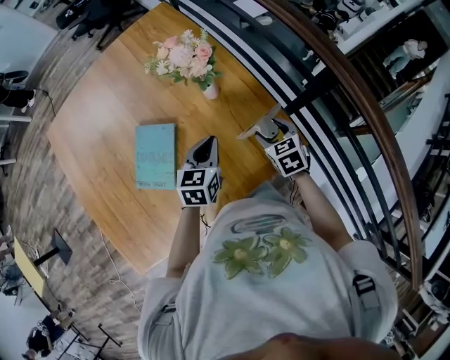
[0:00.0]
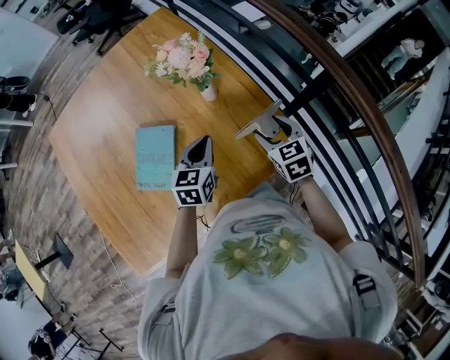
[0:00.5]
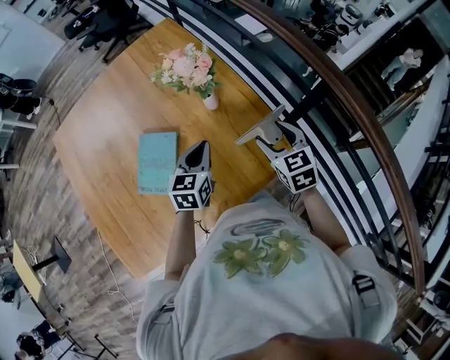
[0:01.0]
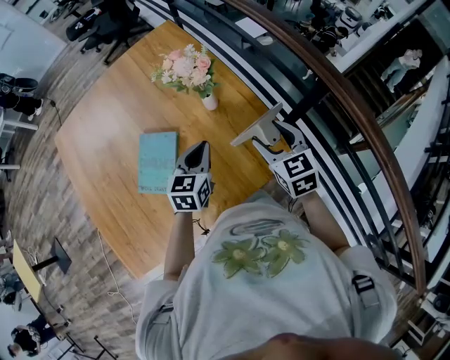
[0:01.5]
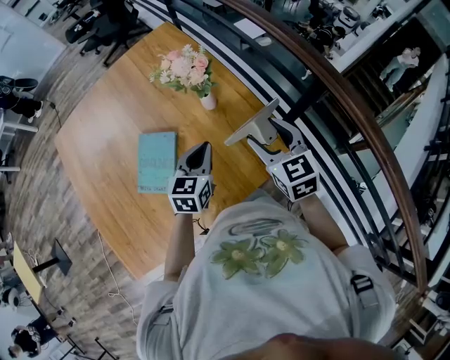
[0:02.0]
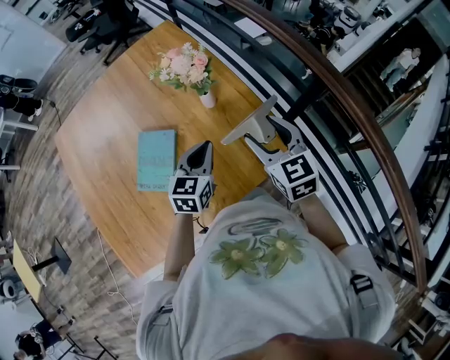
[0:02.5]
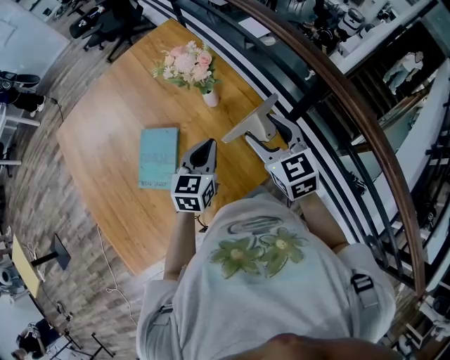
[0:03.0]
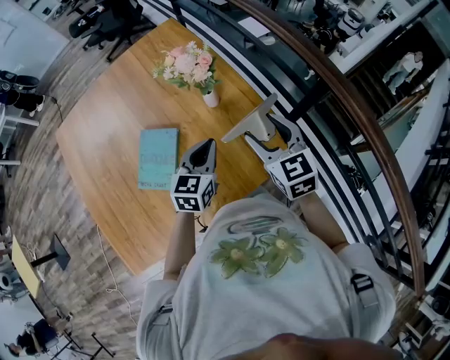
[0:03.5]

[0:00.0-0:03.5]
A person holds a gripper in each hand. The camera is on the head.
0:00.0 to 0:02.0: The left gripper moves upward, about 5 cm; the right gripper is displaced upward by approximately 20 cm, and swivels some 20 degrees.
0:02.0 to 0:03.5: The grippers move only a little.

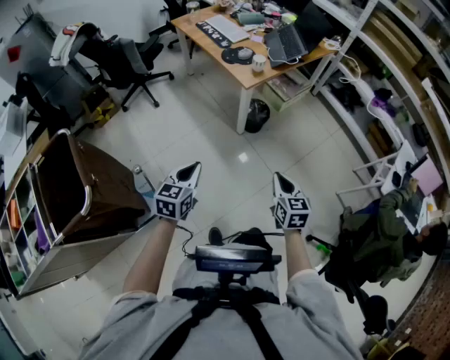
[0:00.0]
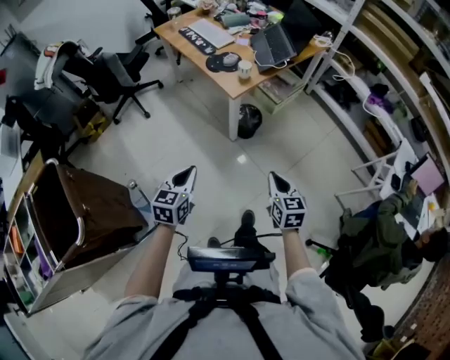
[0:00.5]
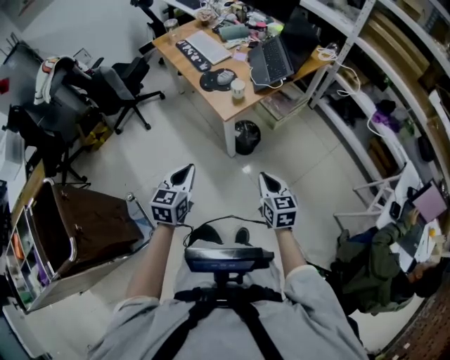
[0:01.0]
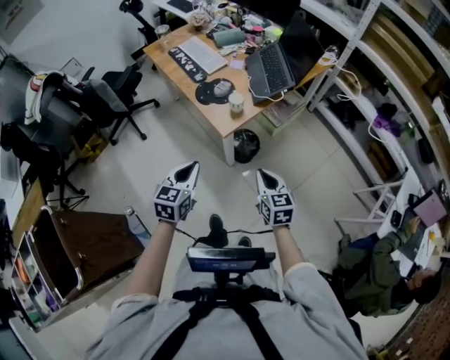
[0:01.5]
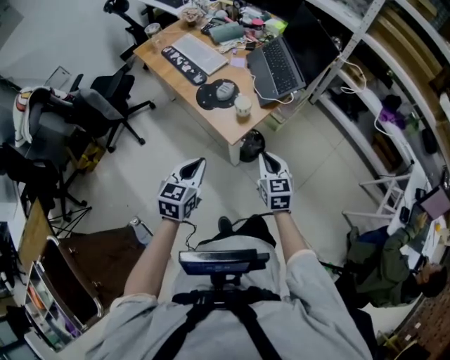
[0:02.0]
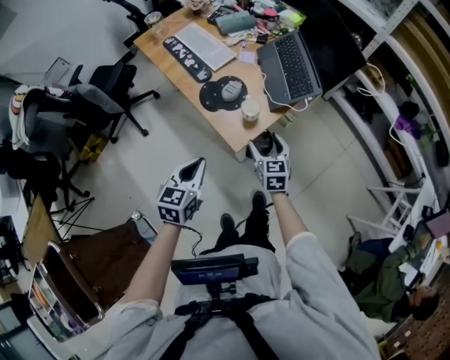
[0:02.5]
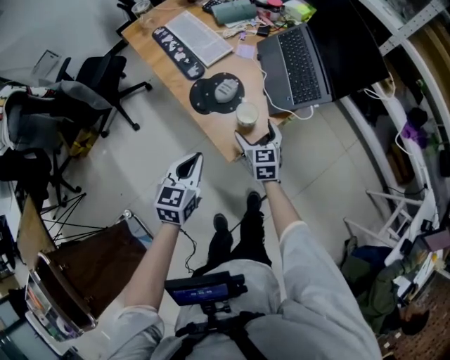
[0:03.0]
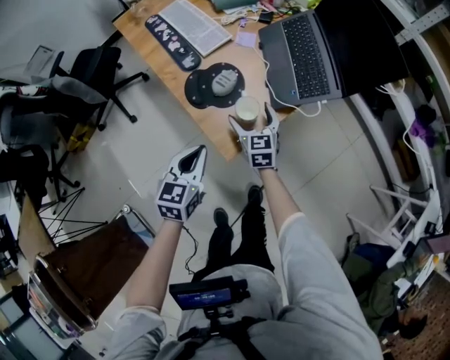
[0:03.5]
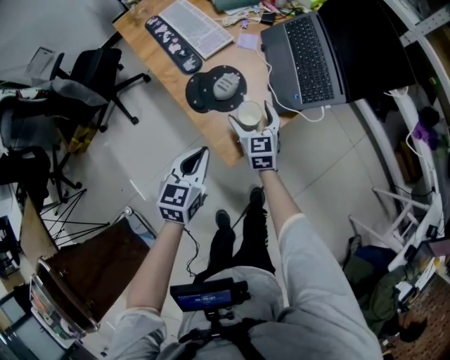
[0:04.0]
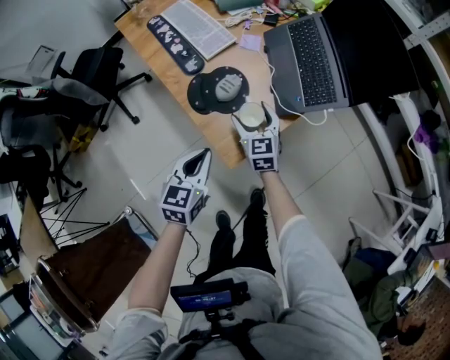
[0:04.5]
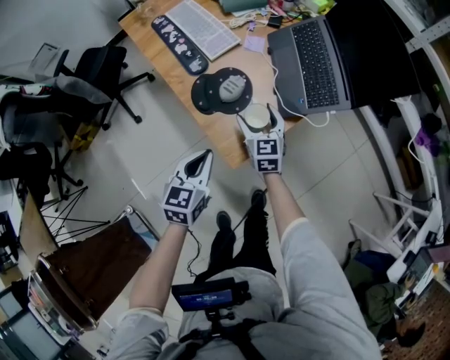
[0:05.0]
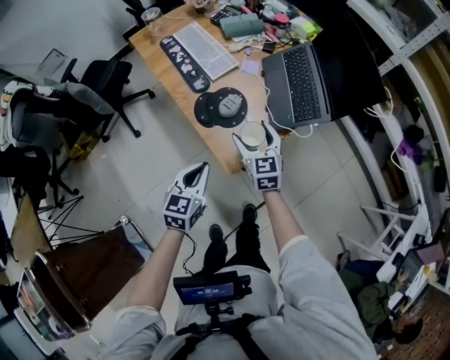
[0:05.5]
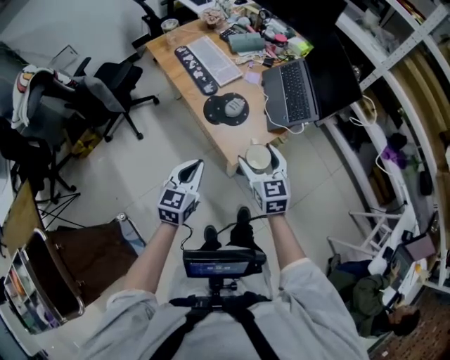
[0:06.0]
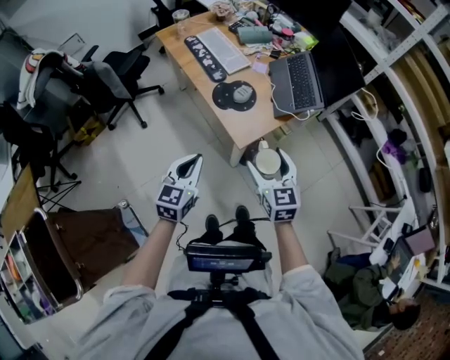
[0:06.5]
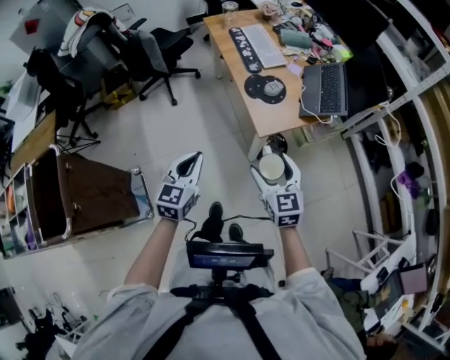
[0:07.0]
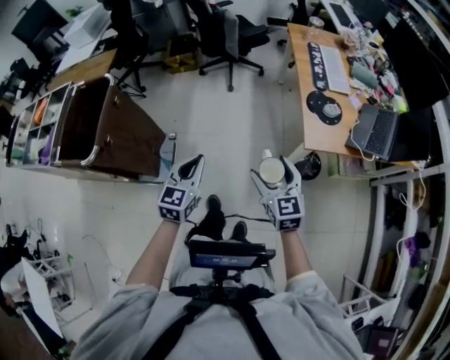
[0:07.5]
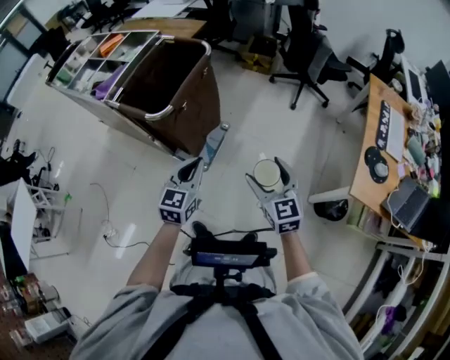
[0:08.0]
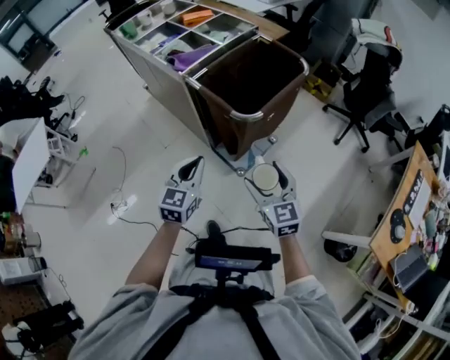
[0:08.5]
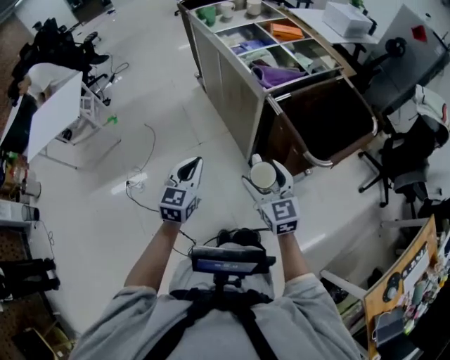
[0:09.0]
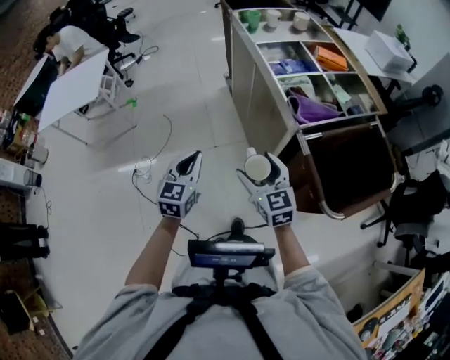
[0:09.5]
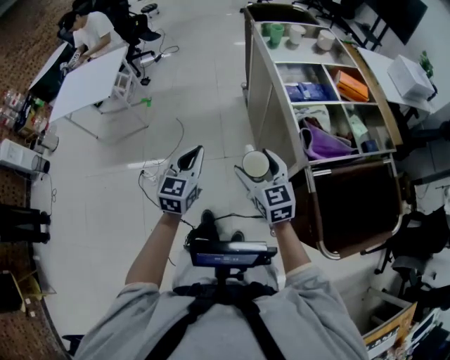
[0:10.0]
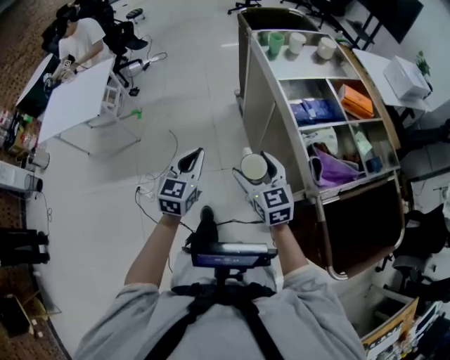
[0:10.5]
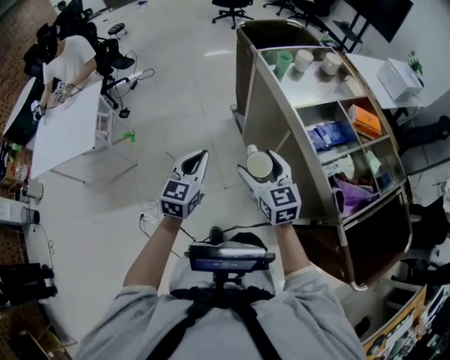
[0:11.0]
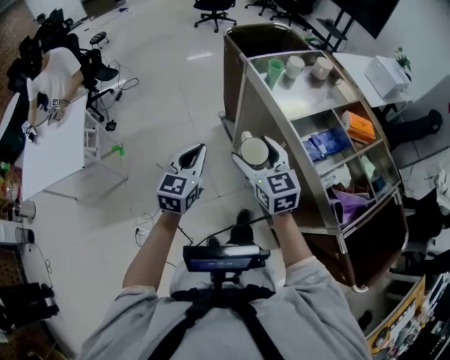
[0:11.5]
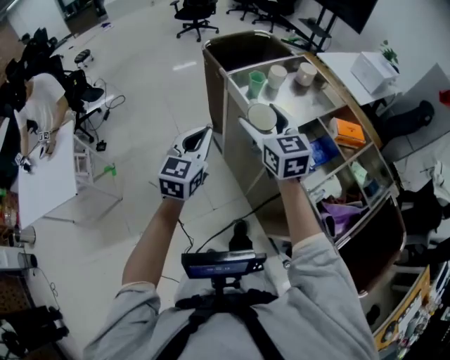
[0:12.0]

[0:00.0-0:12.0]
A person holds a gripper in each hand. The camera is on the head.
0:00.0 to 0:02.0: The pair of grippers is taken forward, about 40 cm.
0:02.0 to 0:04.0: The grippers both shift forward and downward by approximately 25 cm. The right gripper opens its fingers.
0:04.0 to 0:06.0: The left gripper shifts some 15 cm upward and backward; the right gripper moves upward and backward, roughly 25 cm.
0:06.0 to 0:08.0: The two grippers travel together, roughly 50 cm. The right gripper rotates about 70 degrees; the left gripper rotates some 70 degrees.
0:08.0 to 0:10.0: The two grippers travel together, about 70 cm. The left gripper rotates about 60 degrees; the right gripper turns by about 60 degrees.
0:10.0 to 0:12.0: The pair of grippers is taken forward, roughly 40 cm. The left gripper turns by roughly 20 degrees, while the right gripper swivels about 20 degrees.

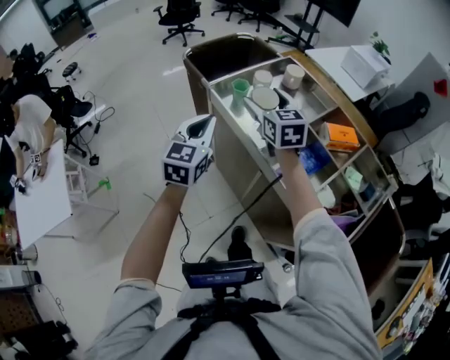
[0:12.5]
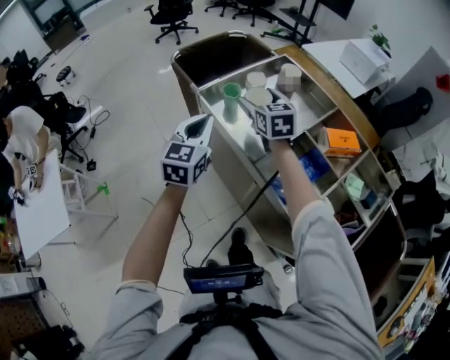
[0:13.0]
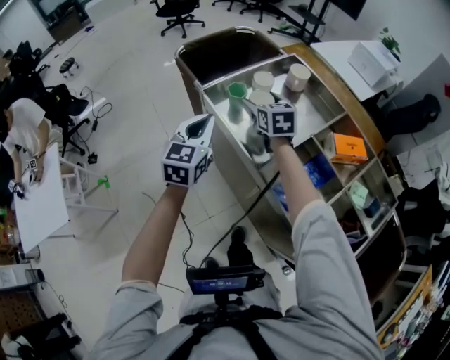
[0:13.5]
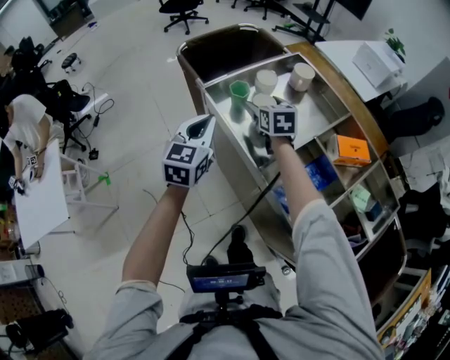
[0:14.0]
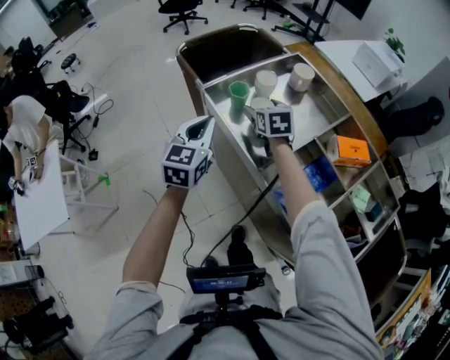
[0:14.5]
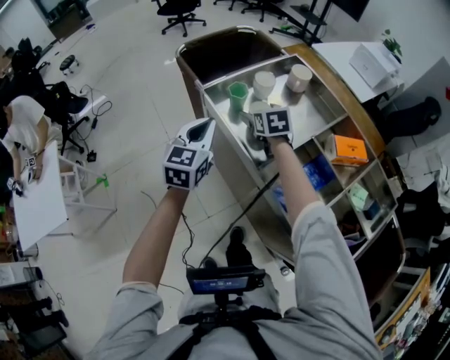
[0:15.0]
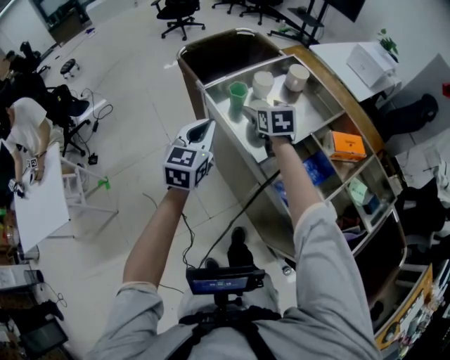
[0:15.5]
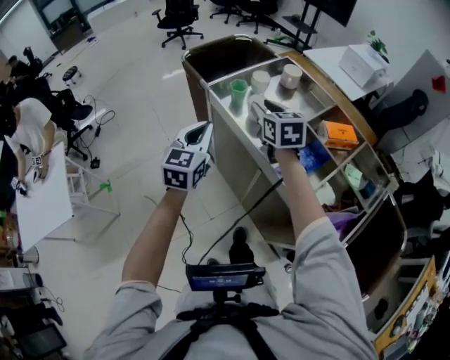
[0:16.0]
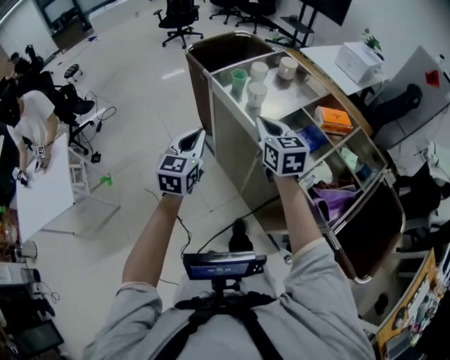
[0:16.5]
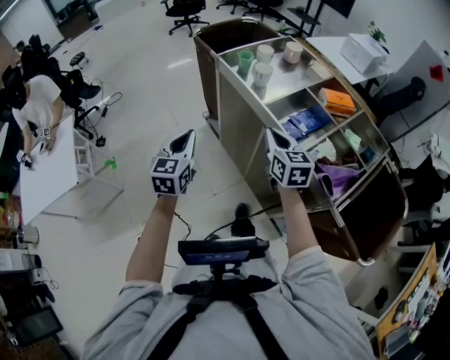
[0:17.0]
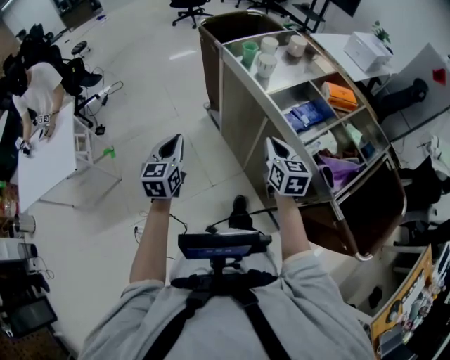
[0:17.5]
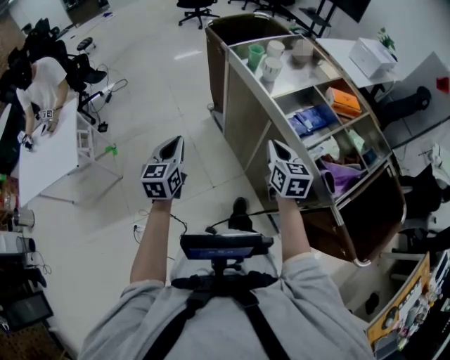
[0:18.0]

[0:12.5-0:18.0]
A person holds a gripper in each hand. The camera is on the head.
0:12.5 to 0:14.5: The left gripper travels forward by about 10 cm; the right gripper is displaced downward and forward by approximately 20 cm, and changes its angle by some 20 degrees.
0:14.5 to 0:16.0: The left gripper shifts some 10 cm backward. Meanwhile the right gripper moves backward and upward, some 15 cm, and closes.
0:16.0 to 0:18.0: The left gripper shifts some 25 cm backward, to the left and downward. Meanwhile the right gripper goes approximately 25 cm backward.

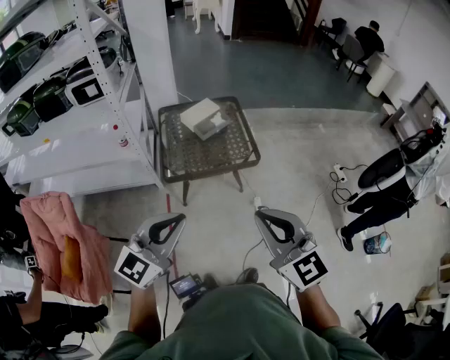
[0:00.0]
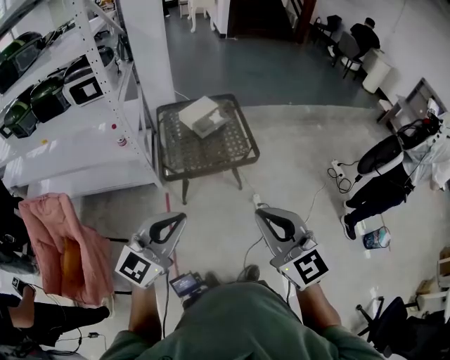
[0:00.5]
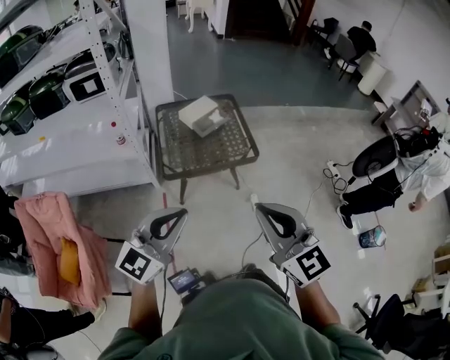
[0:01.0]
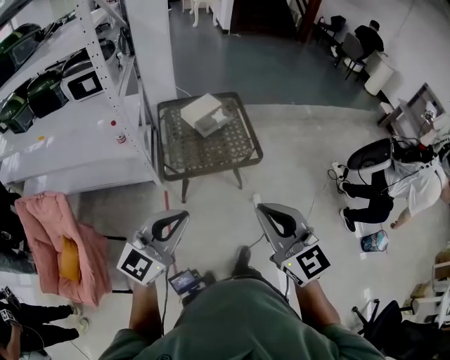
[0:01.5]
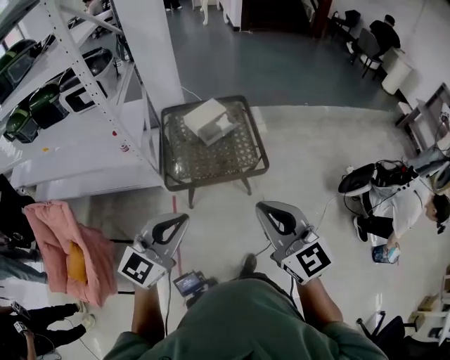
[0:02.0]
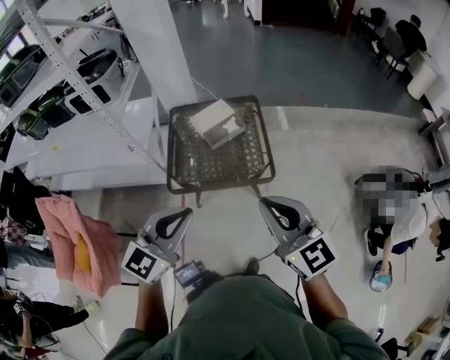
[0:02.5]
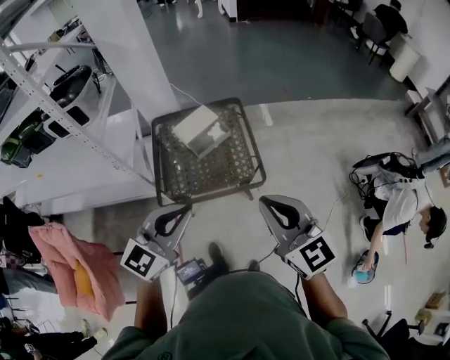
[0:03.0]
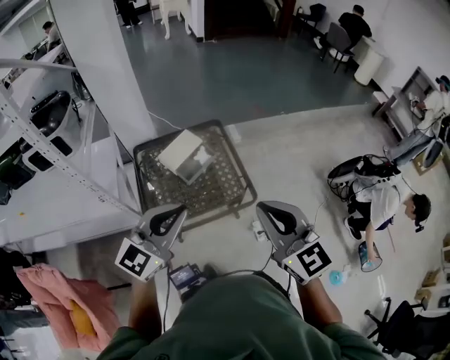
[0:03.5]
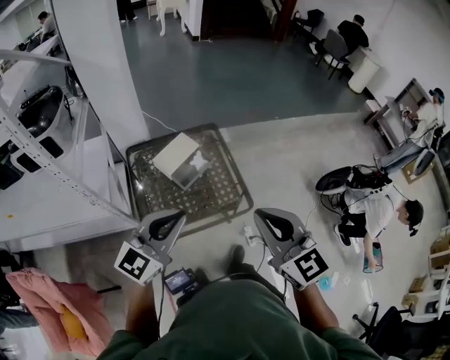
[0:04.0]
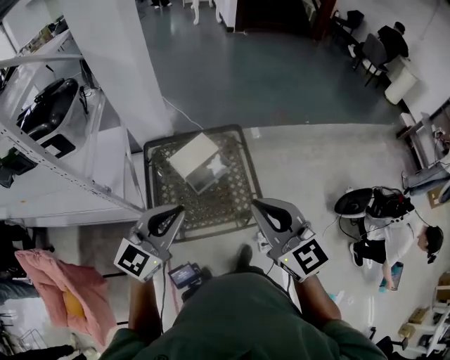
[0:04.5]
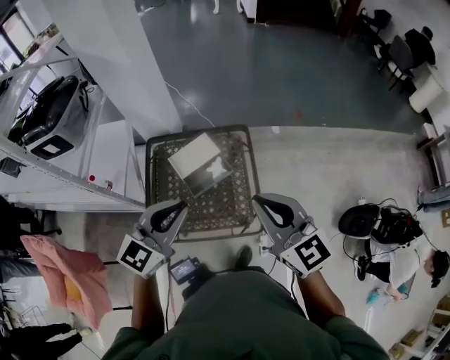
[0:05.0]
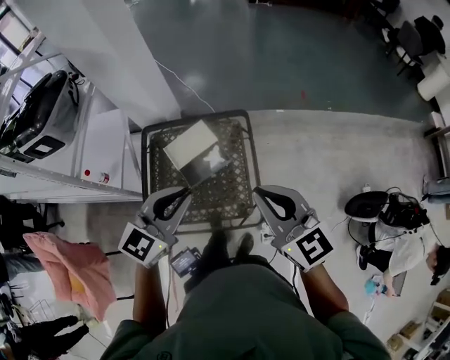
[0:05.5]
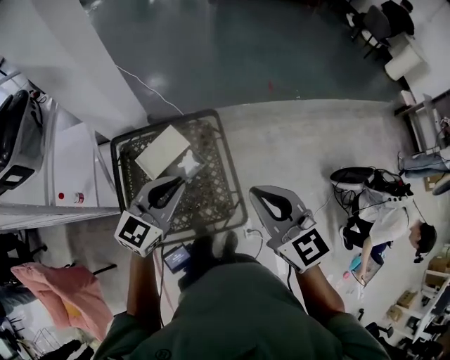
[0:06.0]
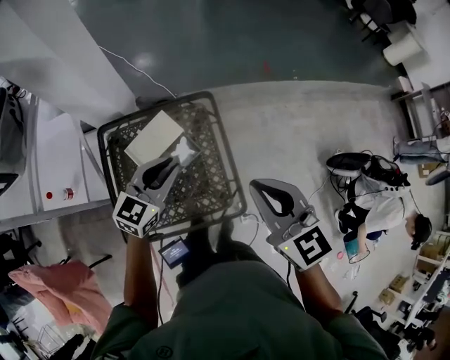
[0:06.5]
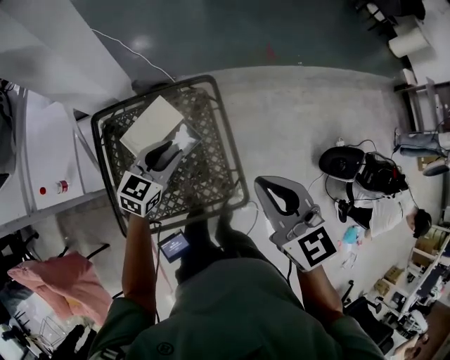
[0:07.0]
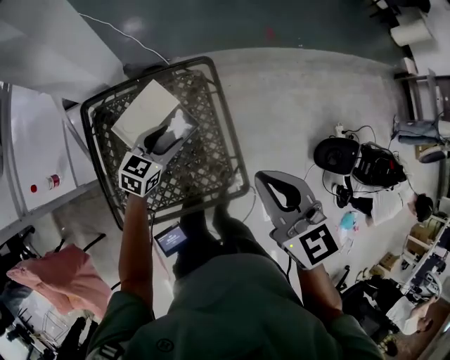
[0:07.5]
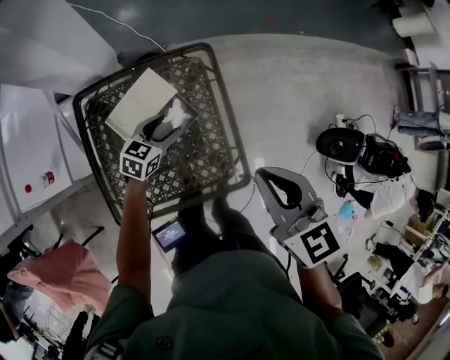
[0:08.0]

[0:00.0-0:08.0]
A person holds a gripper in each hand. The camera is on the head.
0:00.0 to 0:02.0: Both grippers move forward, roughly 15 cm.
0:02.0 to 0:04.0: The two grippers go about 25 cm forward.
0:04.0 to 0:06.0: The right gripper travels forward by roughly 30 cm, while the left gripper shifts about 35 cm forward and to the right.
0:06.0 to 0:08.0: The left gripper is displaced downward by about 35 cm, turns by approximately 30 degrees, and opens up; the right gripper heads downward, covering approximately 15 cm.
